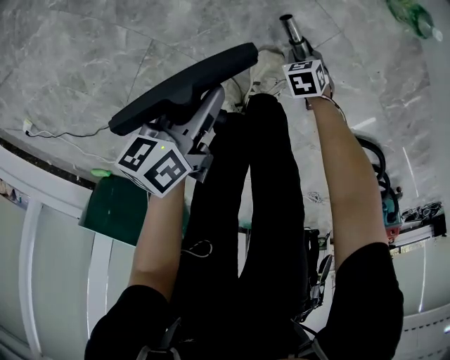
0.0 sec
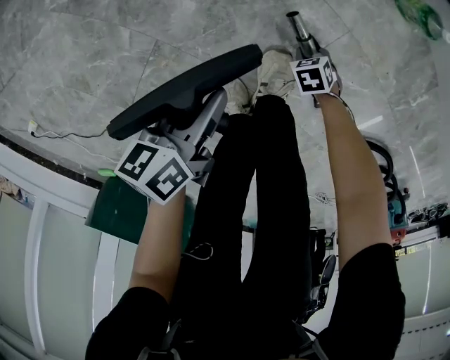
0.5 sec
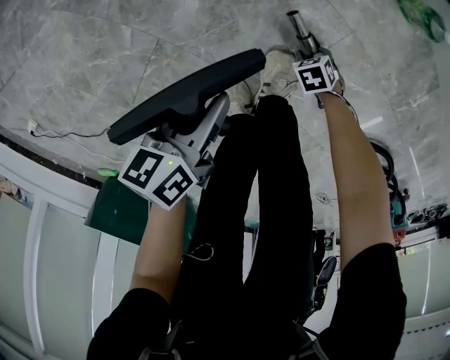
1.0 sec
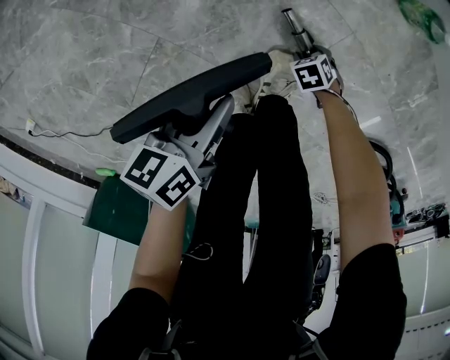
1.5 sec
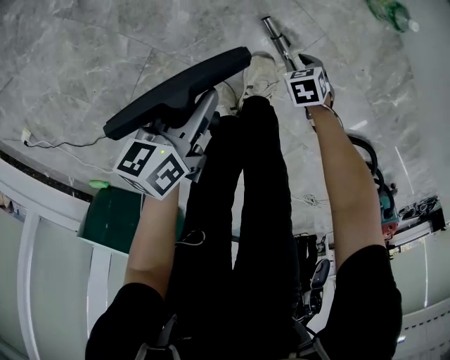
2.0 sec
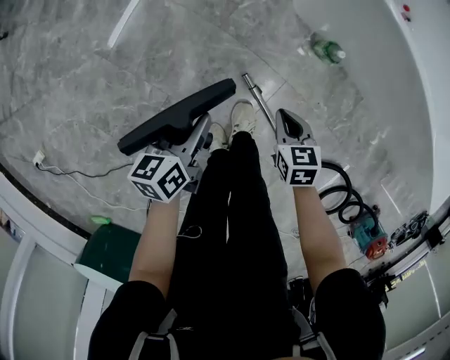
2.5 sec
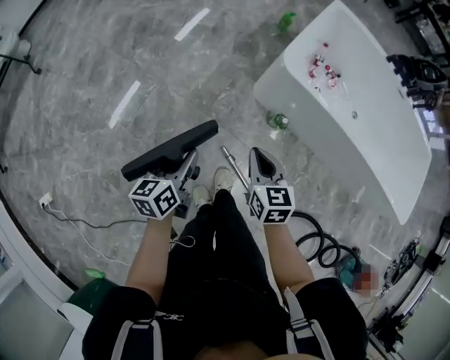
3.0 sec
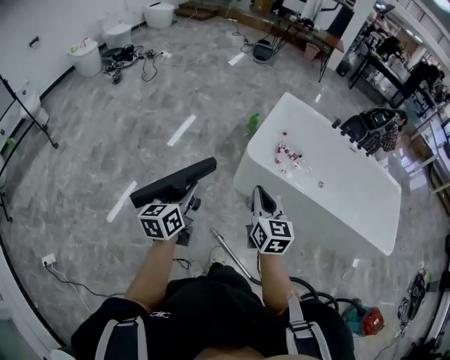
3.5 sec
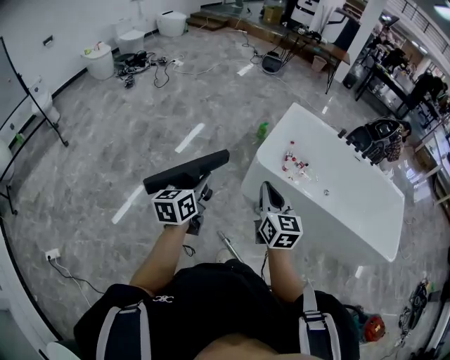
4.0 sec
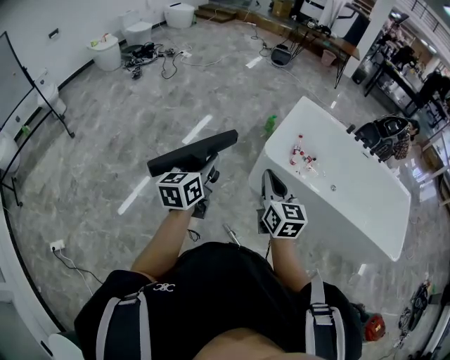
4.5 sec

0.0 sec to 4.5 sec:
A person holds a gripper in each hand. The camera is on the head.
0.0 sec to 2.0 sec: The right gripper heads upward, covering some 5 cm, and opens its fingers.
2.0 sec to 4.5 sec: Both grippers travel together upward, some 90 cm. The right gripper points its fingers about 70 degrees further upward, and closes its fingers. The left gripper points its fingers about 30 degrees further upward.

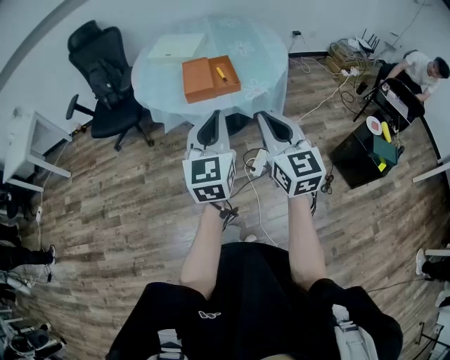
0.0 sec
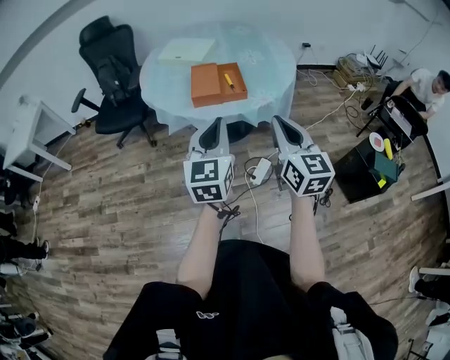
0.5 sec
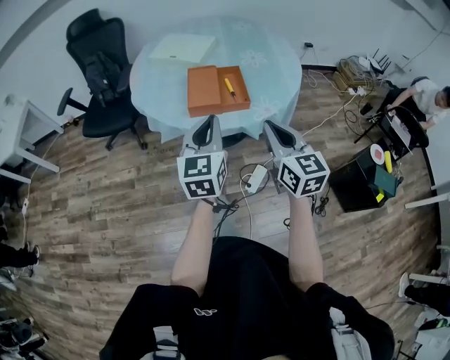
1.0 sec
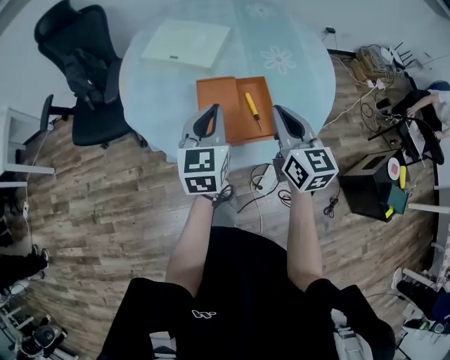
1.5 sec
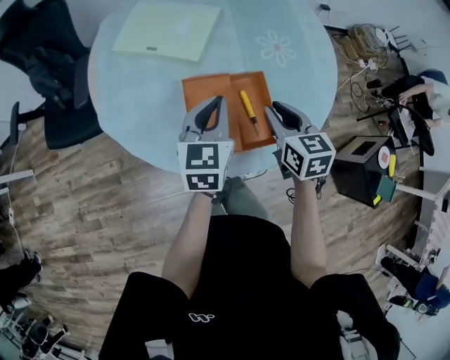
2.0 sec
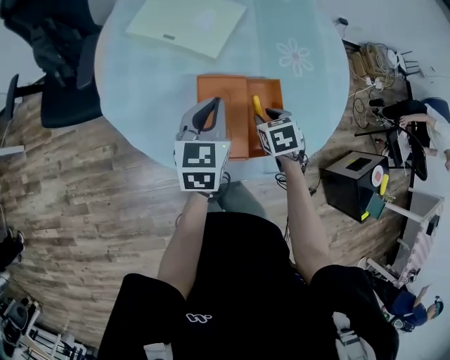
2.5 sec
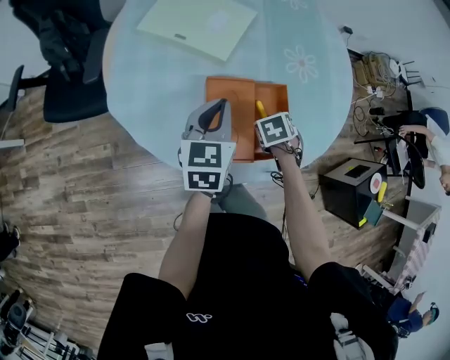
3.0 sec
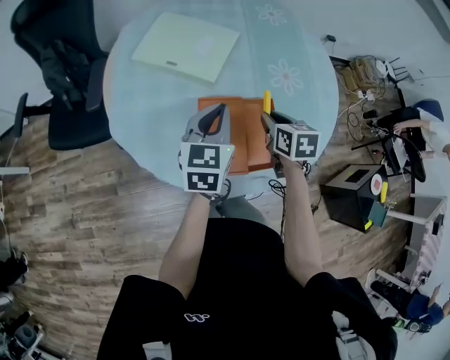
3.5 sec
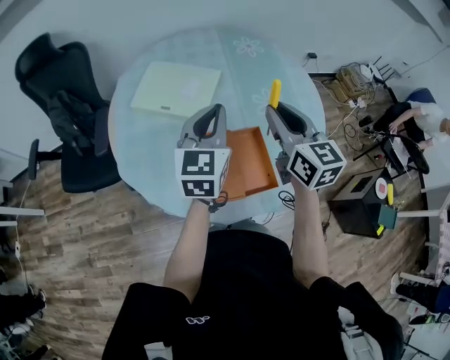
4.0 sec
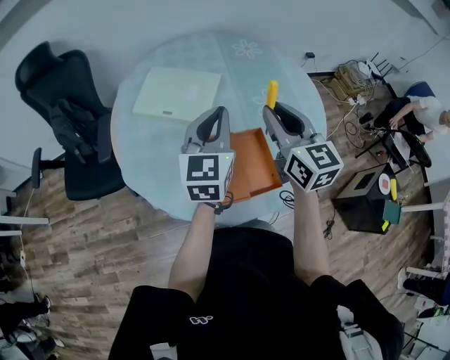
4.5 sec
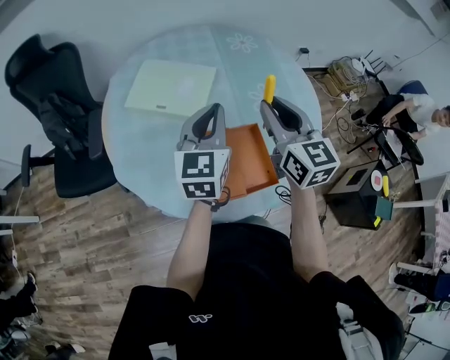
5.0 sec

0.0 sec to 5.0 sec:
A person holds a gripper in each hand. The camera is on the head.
0.0 sec to 2.5 sec: Both grippers are carried forward, roughly 50 cm. The right gripper heads downward, covering some 35 cm, points its fingers approximately 60 degrees further downward, and opens its fingers. Meanwhile the left gripper rotates some 30 degrees.
2.5 sec to 5.0 sec: The right gripper is displaced upward by approximately 30 cm, and tips its fingers upward by some 60 degrees. The left gripper goes some 15 cm upward, and turns by roughly 20 degrees.

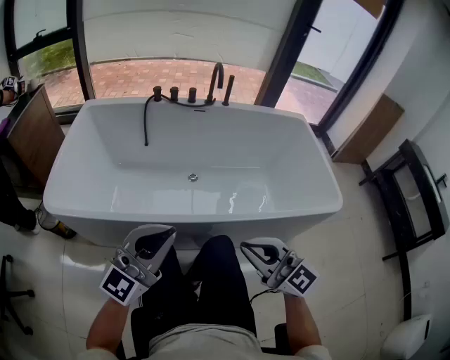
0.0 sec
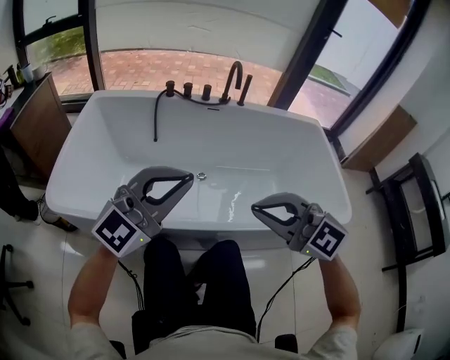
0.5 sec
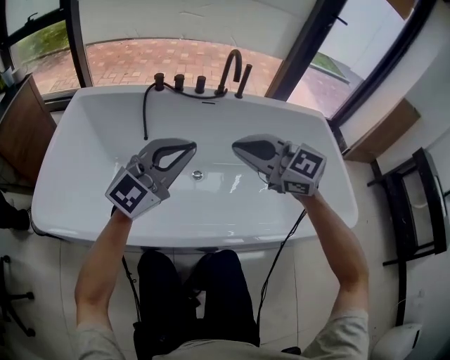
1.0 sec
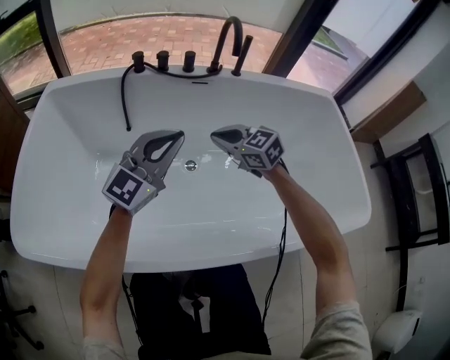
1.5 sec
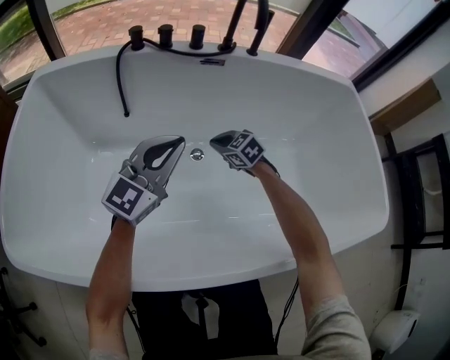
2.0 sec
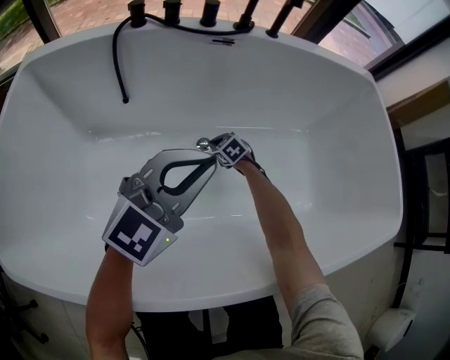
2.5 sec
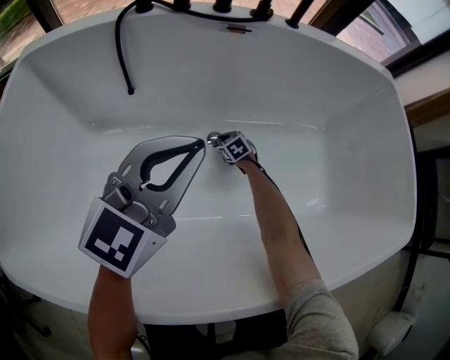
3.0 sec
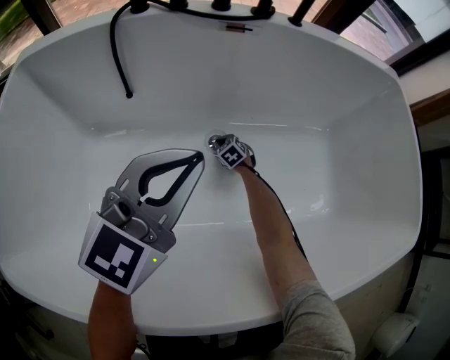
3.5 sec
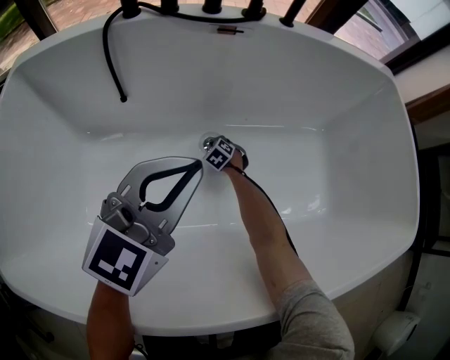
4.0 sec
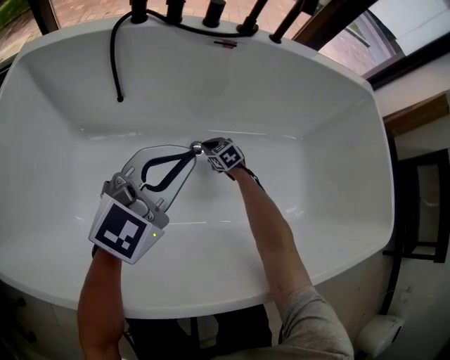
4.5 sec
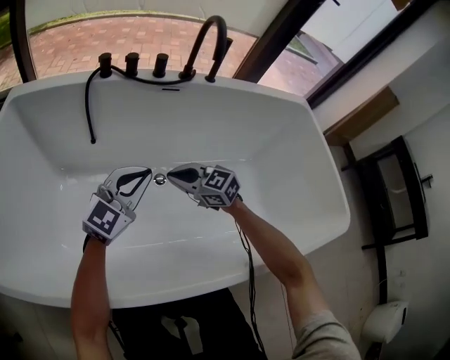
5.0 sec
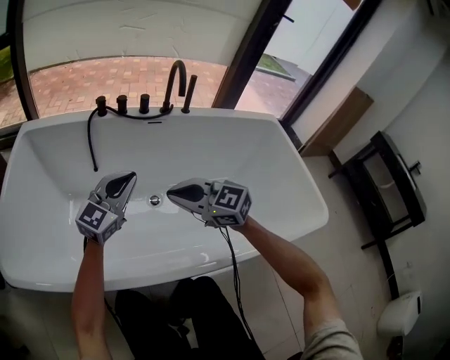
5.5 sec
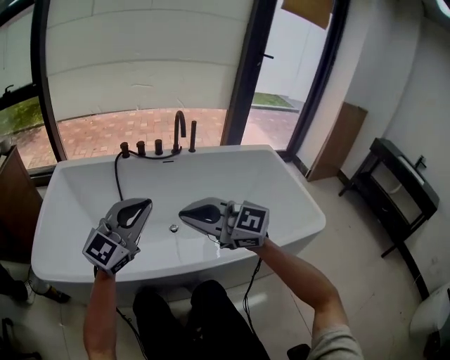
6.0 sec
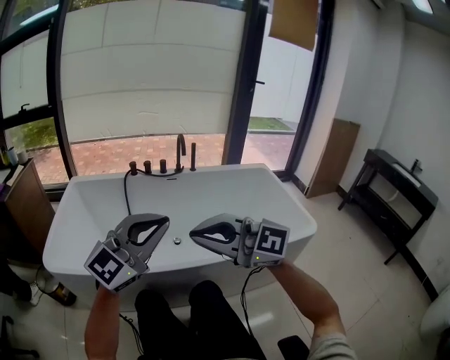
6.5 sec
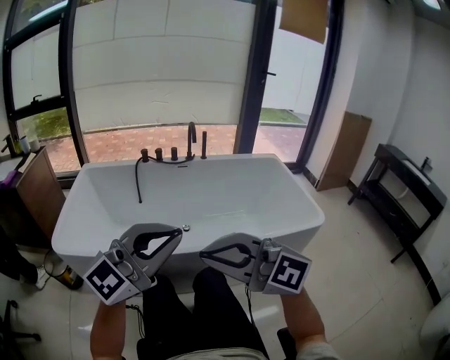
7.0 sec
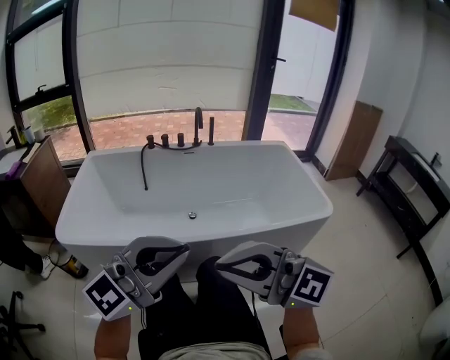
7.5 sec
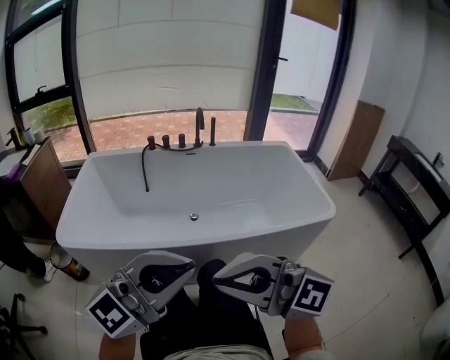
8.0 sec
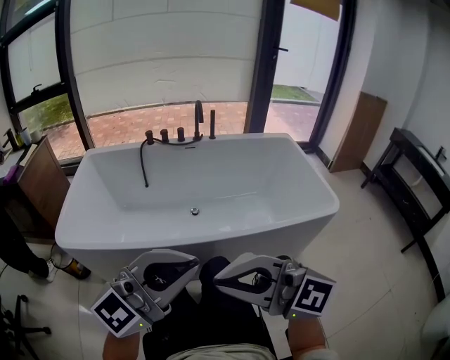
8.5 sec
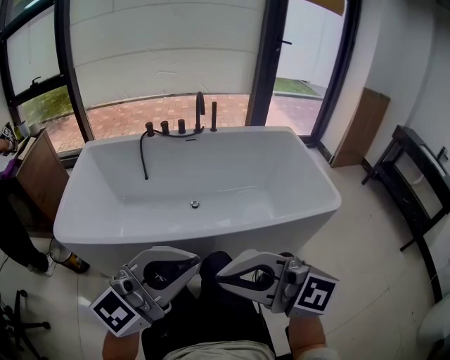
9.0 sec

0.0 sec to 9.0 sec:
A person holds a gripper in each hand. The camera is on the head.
0.0 sec to 2.0 sec: Both grippers are carried forward, roughly 50 cm. The left gripper moves downward, approximately 20 cm. Meanwhile the right gripper moves downward, some 40 cm, and tips its fingers downward by about 50 degrees.
2.0 sec to 4.5 sec: The right gripper shifts approximately 20 cm downward.
4.5 sec to 7.0 sec: Both grippers are carried some 60 cm. The left gripper swivels about 30 degrees. The right gripper is displaced upward by some 70 cm, and tips its fingers upward by roughly 50 degrees.
7.0 sec to 9.0 sec: The grippers make only small movements.

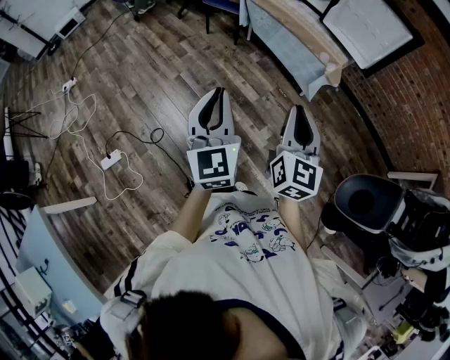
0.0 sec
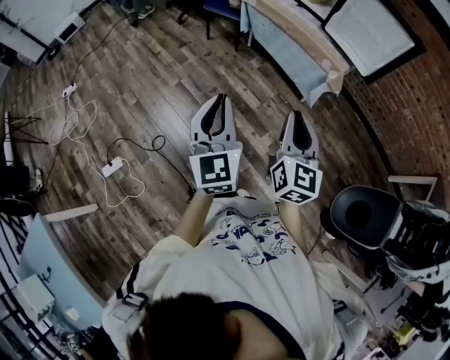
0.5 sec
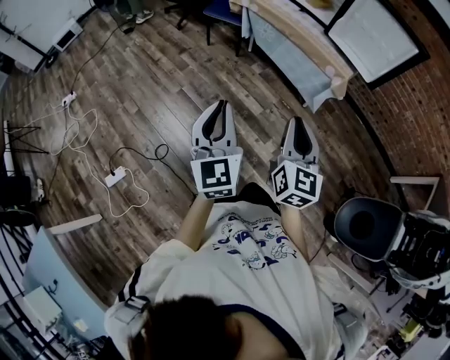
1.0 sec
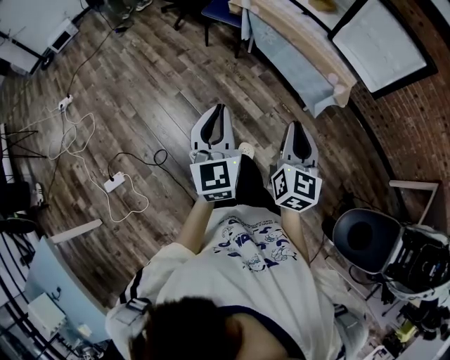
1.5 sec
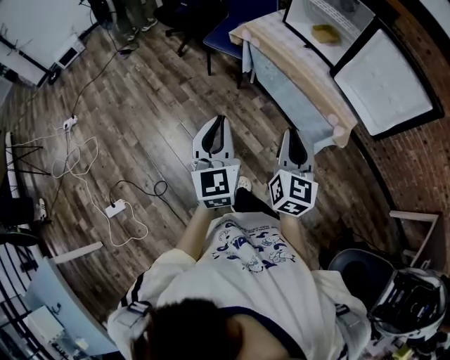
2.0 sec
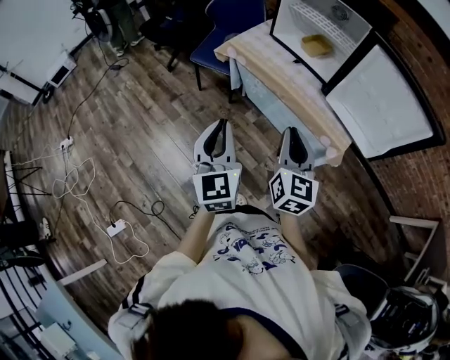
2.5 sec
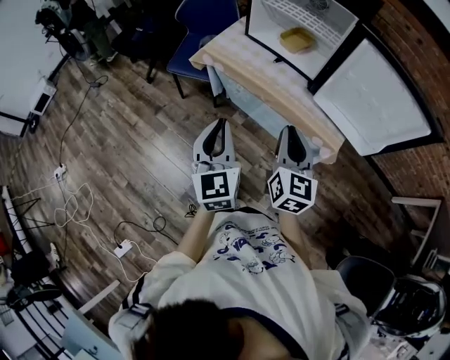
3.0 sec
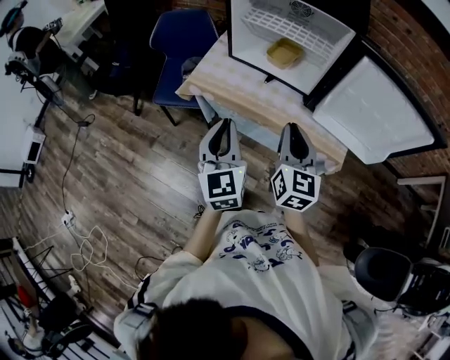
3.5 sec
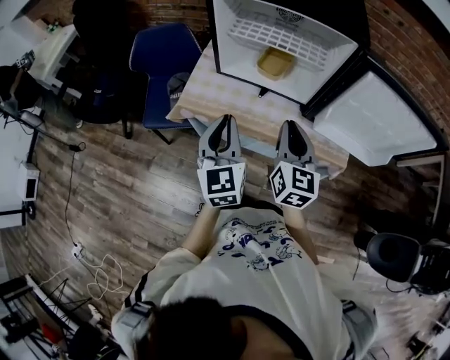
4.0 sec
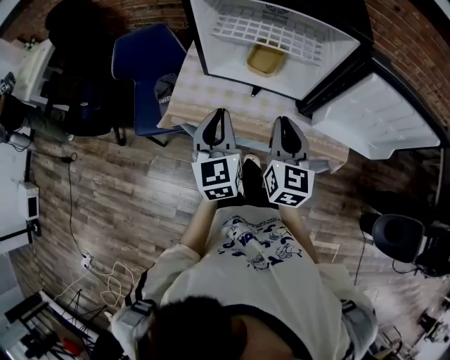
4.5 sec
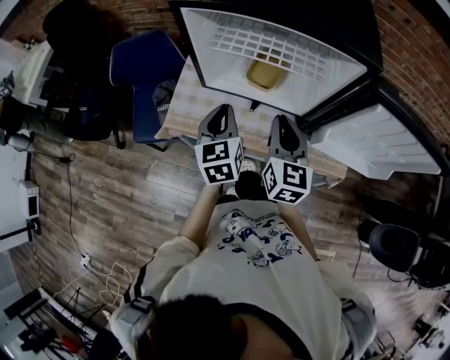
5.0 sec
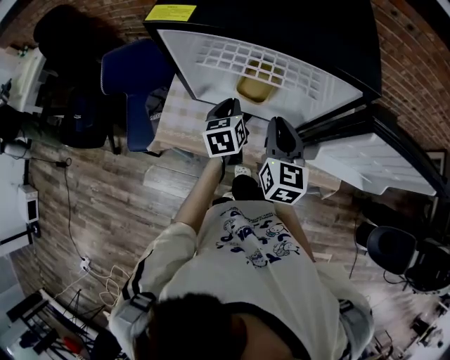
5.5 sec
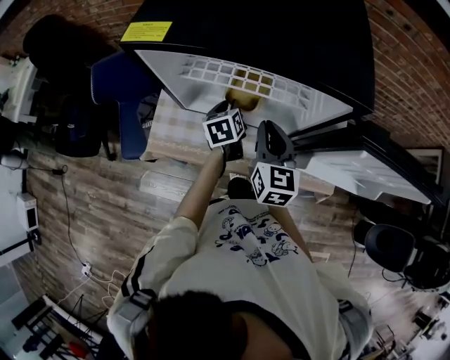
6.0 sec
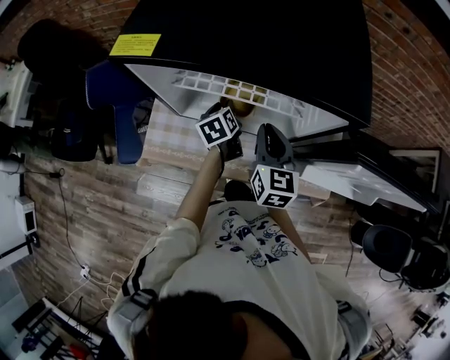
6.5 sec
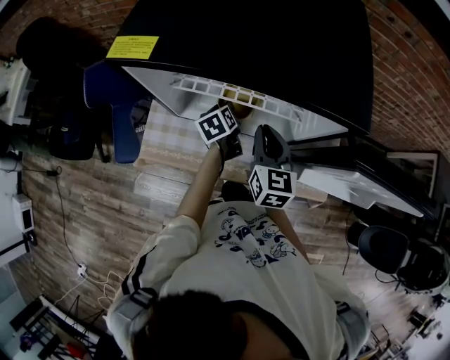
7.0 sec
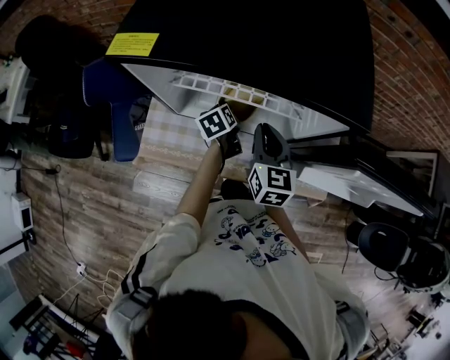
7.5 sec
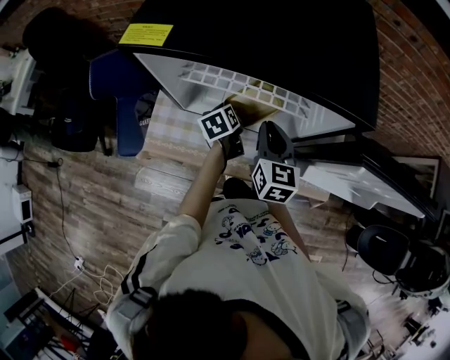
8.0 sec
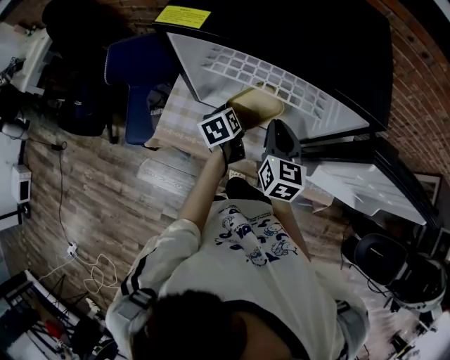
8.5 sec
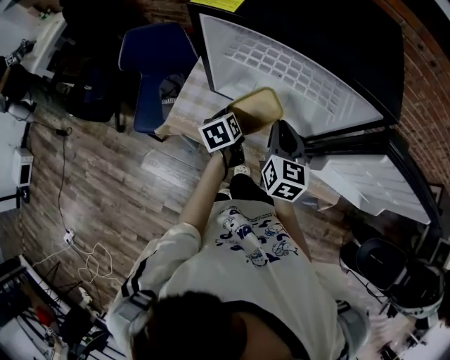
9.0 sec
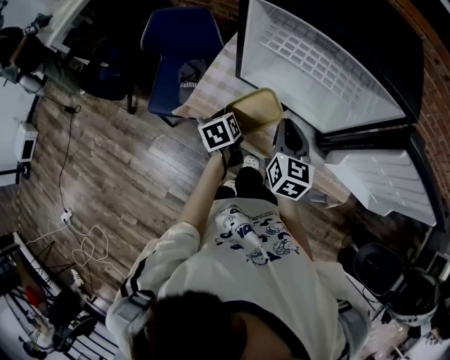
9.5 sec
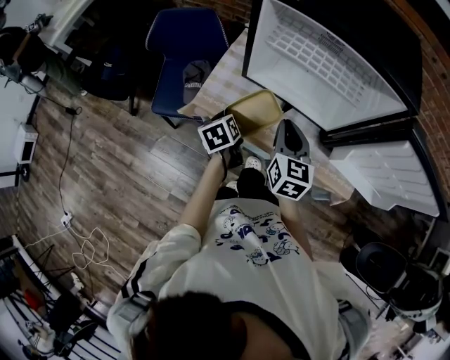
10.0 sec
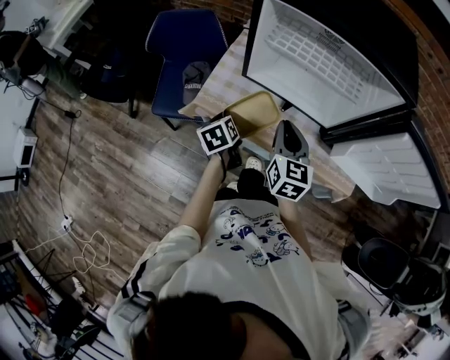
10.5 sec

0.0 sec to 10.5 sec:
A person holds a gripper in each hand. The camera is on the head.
0.0 sec to 2.0 sec: Both grippers move forward, approximately 30 cm.
2.0 sec to 4.0 sec: The two grippers travel together, about 50 cm. The right gripper swivels roughly 30 degrees. The left gripper swivels some 30 degrees.
4.0 sec to 6.5 sec: The right gripper travels forward by approximately 25 cm; the left gripper is displaced forward and downward by roughly 40 cm, tilts its fingers roughly 30 degrees downward, and opens up.
6.5 sec to 8.5 sec: The left gripper heads to the left and backward, covering about 5 cm, and closes up.
8.5 sec to 10.5 sec: Both grippers move to the left and backward, approximately 20 cm.
